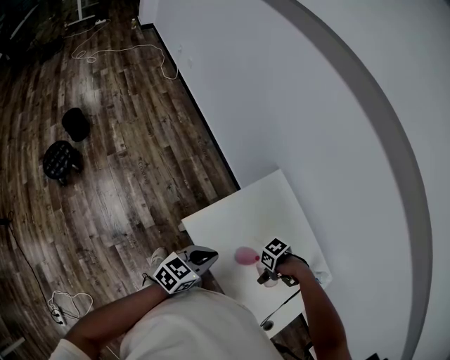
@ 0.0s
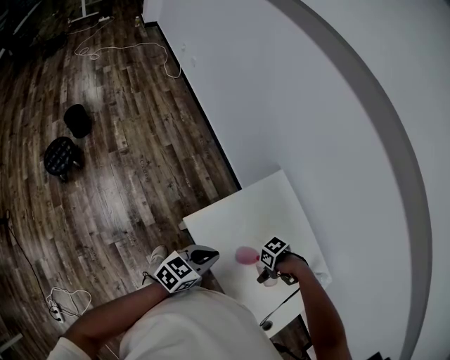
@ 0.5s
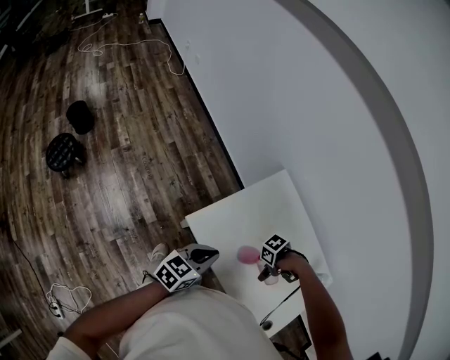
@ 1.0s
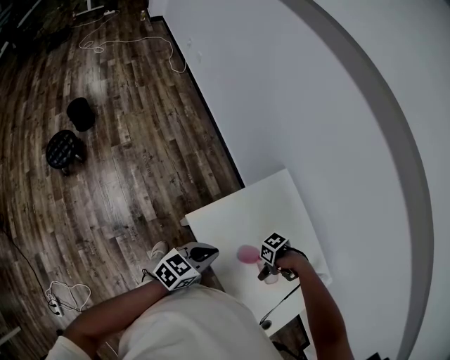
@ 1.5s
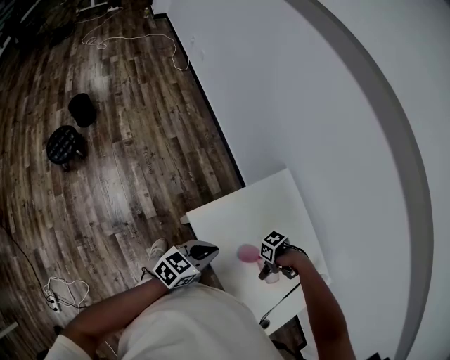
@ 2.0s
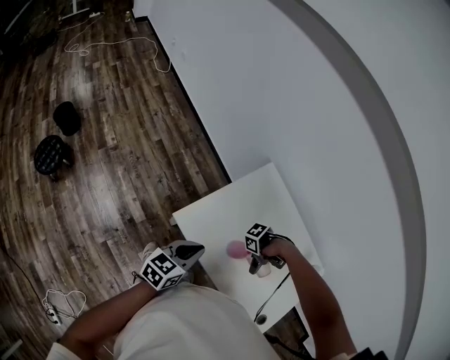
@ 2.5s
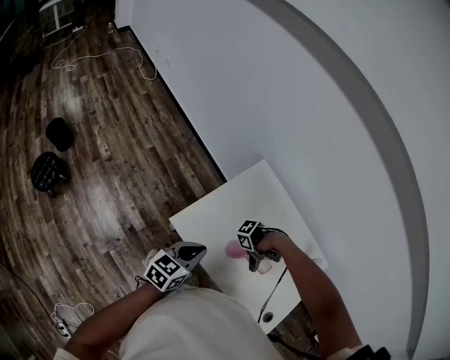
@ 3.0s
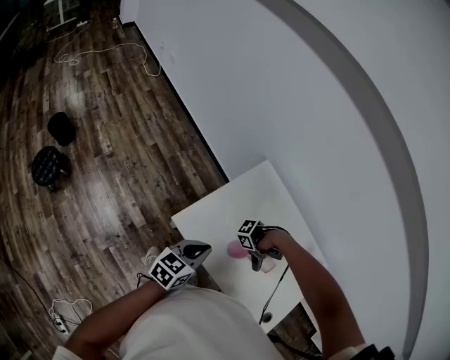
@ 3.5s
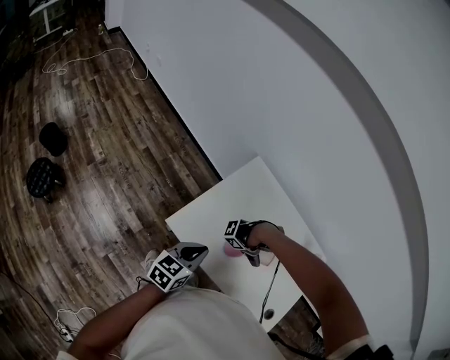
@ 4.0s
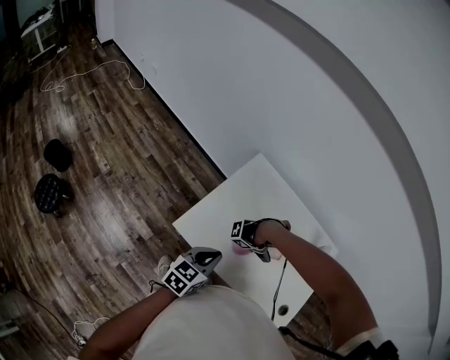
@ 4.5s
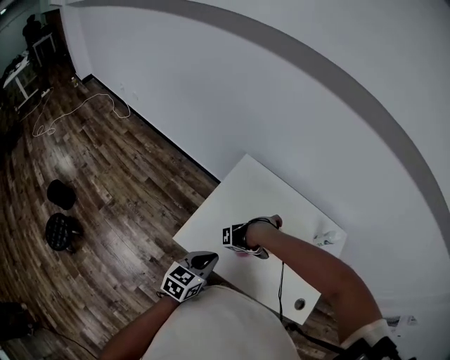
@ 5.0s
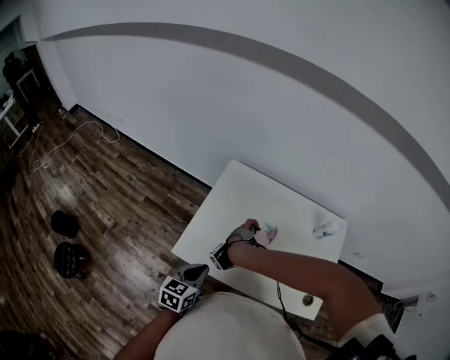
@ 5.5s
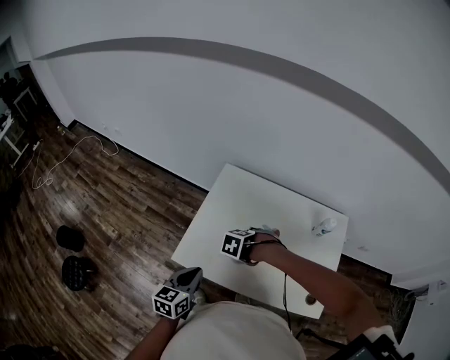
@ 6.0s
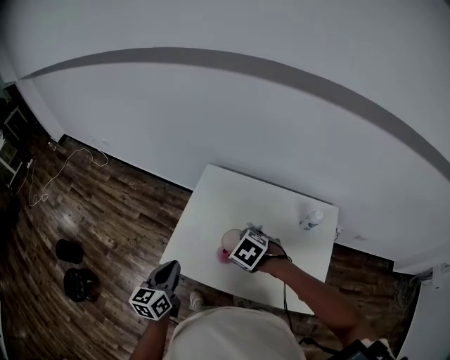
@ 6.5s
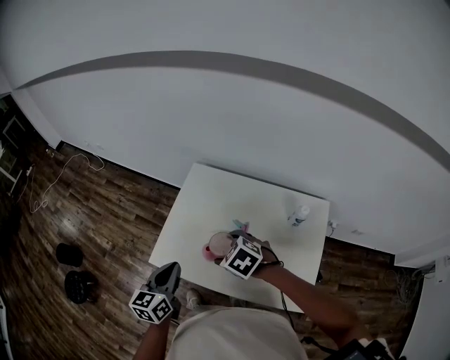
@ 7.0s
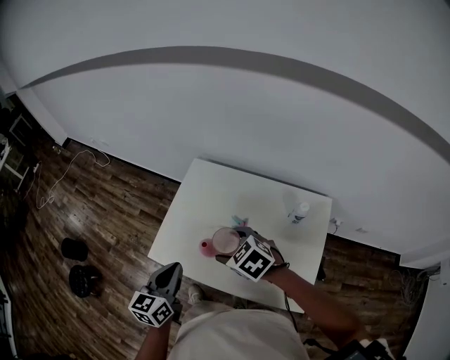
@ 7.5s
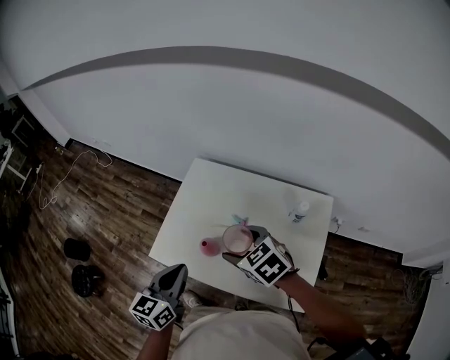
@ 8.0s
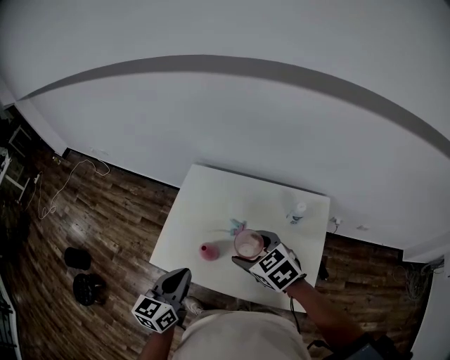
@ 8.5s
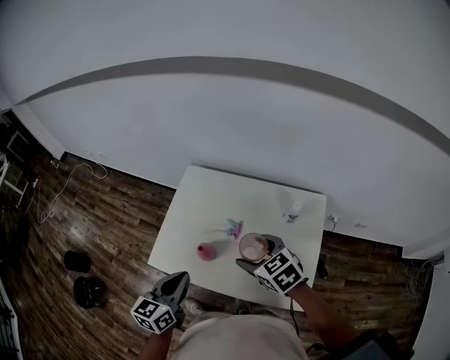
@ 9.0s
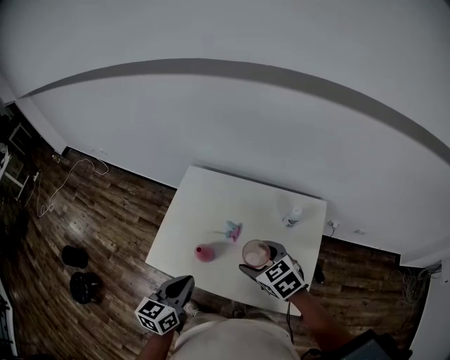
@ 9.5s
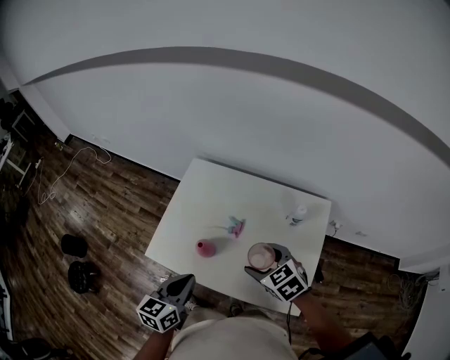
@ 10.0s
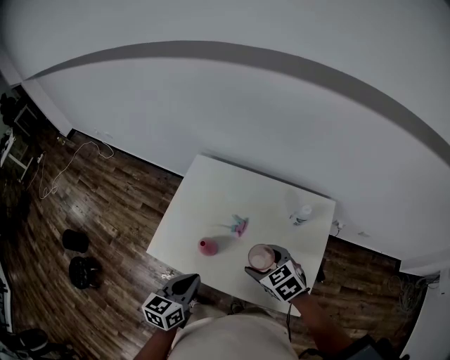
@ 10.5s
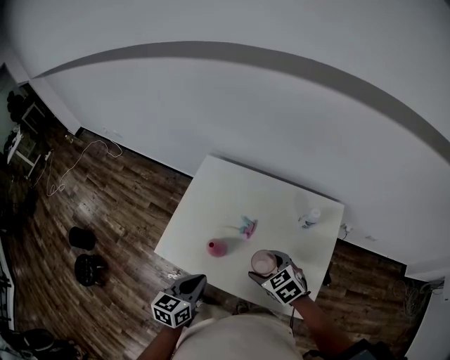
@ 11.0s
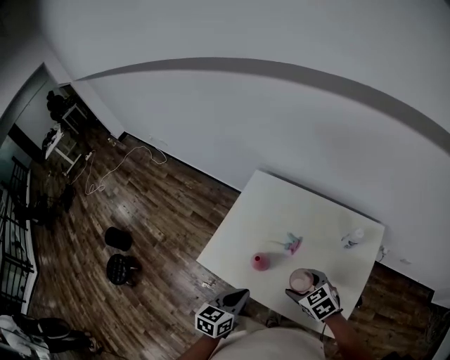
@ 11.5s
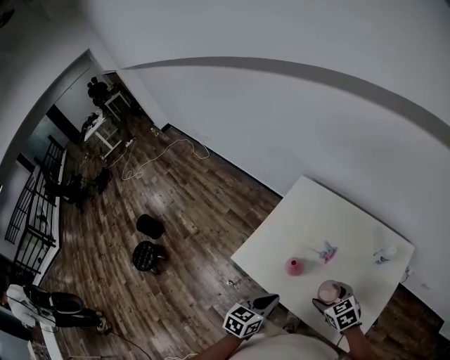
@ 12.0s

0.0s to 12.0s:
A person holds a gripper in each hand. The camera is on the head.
0.0s to 2.0s: There are only small adjustments of the grippers.
2.0s to 4.0s: The right gripper swivels approximately 30 degrees.
4.0s to 6.0s: The right gripper angles its fingers downward, by roughly 50 degrees.
6.0s to 8.0s: The left gripper ends up roughly 20 cm from where it was; the right gripper heads upward, covering some 15 cm, and angles its fingers upward, by approximately 40 degrees.
8.0s to 10.0s: The left gripper shifts by roughly 5 cm. The right gripper heads to the right and downward, covering approximately 10 cm.
10.0s to 12.0s: The right gripper shifts approximately 10 cm downward and to the left, while the left gripper travels downward by some 10 cm.

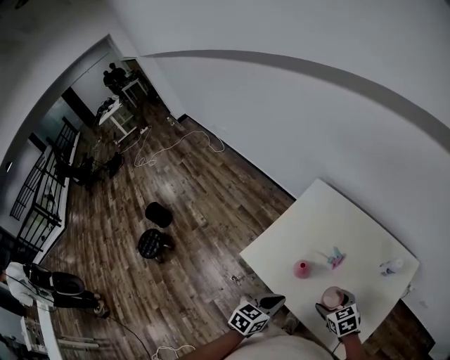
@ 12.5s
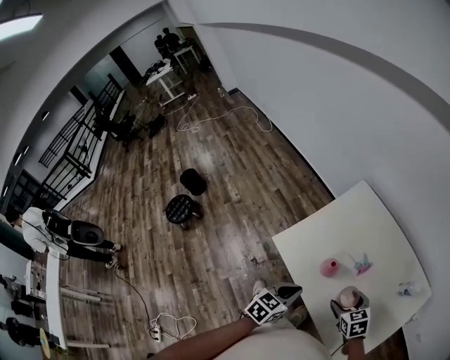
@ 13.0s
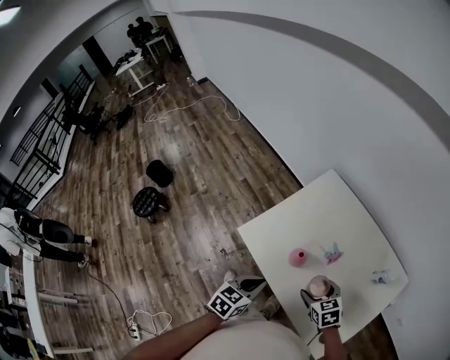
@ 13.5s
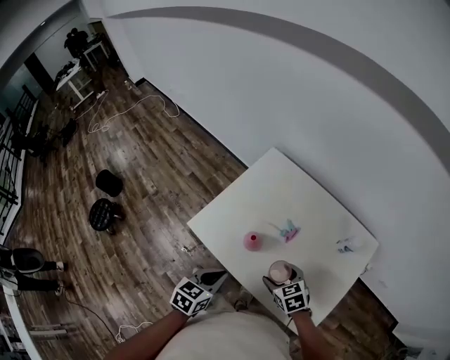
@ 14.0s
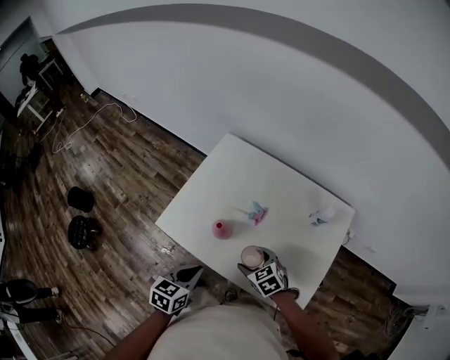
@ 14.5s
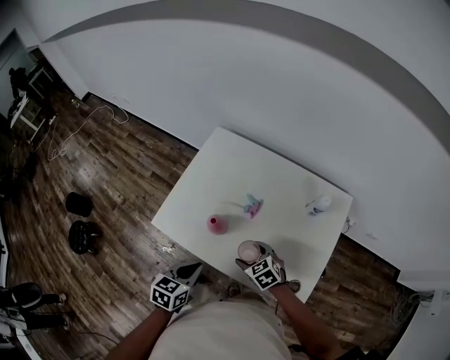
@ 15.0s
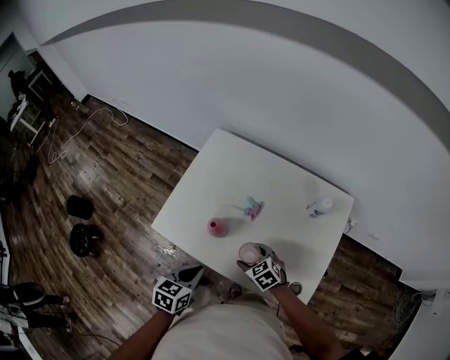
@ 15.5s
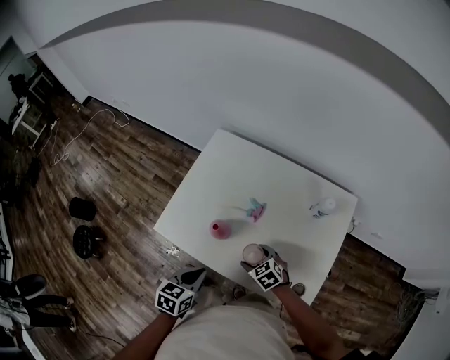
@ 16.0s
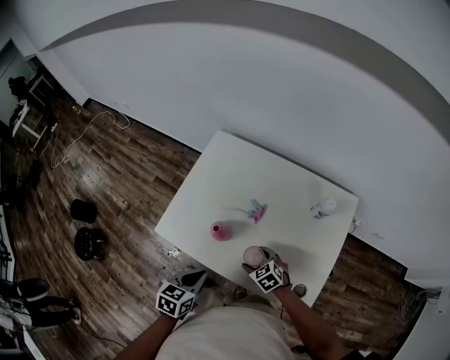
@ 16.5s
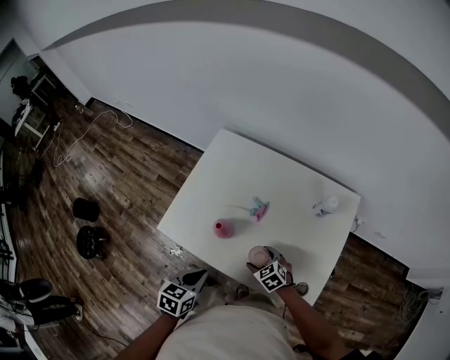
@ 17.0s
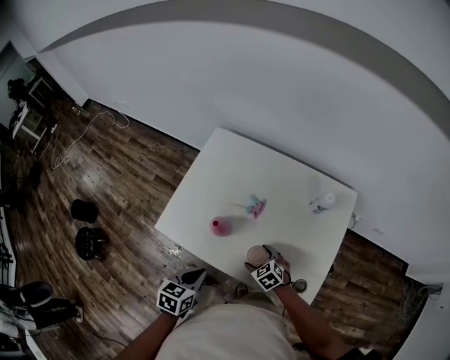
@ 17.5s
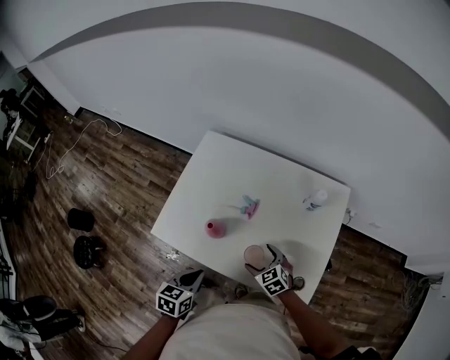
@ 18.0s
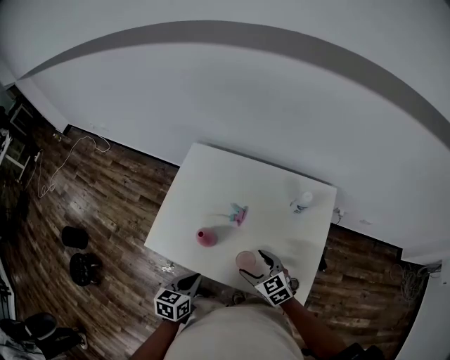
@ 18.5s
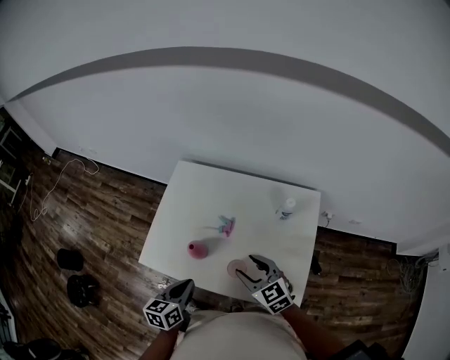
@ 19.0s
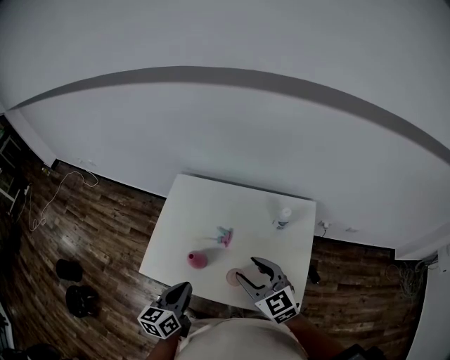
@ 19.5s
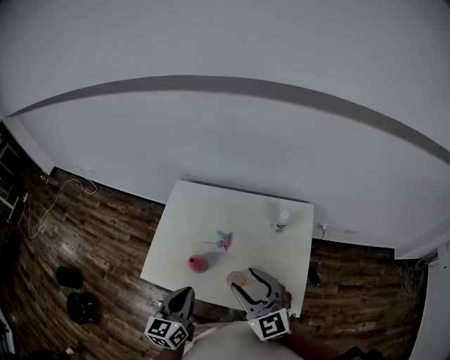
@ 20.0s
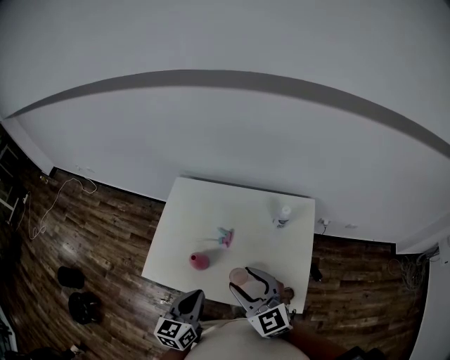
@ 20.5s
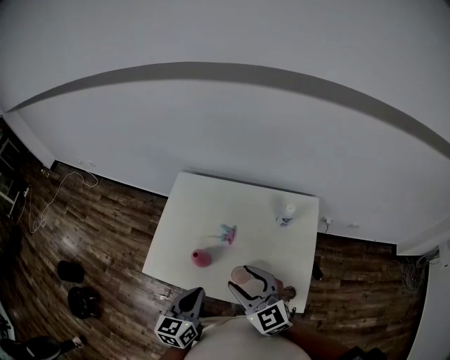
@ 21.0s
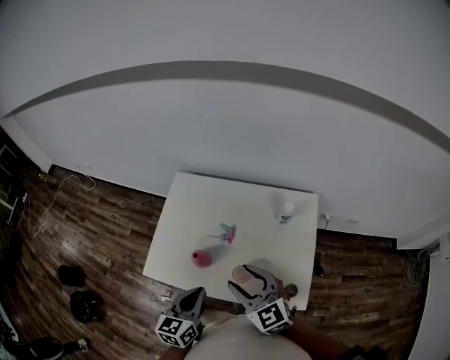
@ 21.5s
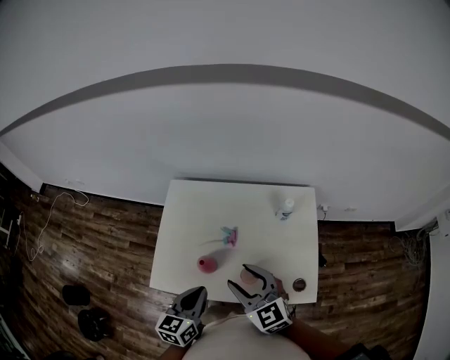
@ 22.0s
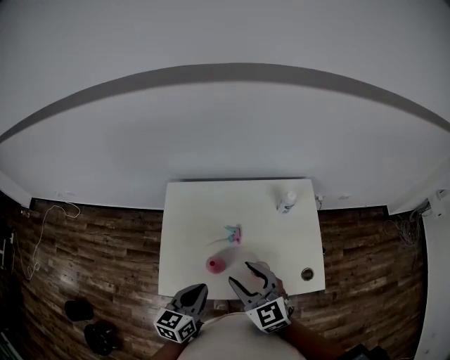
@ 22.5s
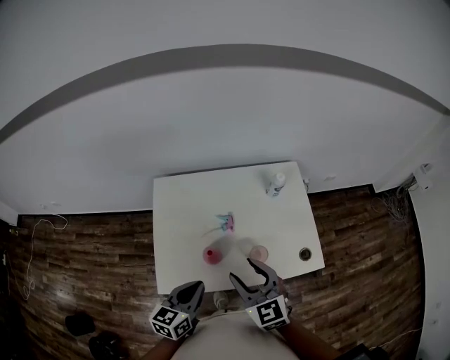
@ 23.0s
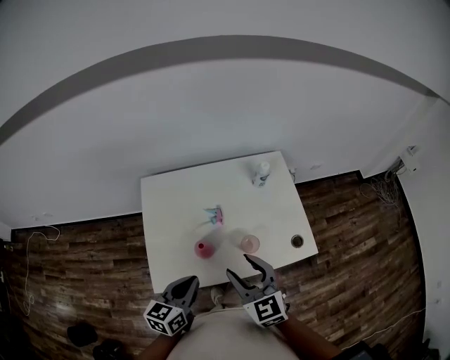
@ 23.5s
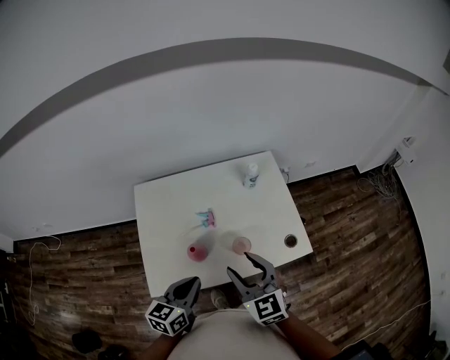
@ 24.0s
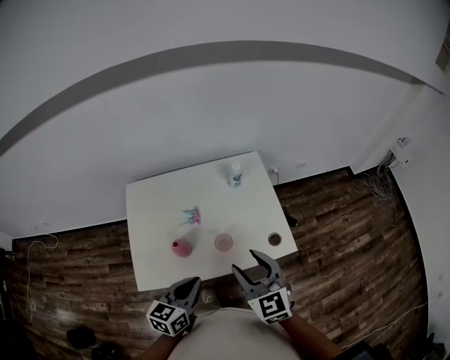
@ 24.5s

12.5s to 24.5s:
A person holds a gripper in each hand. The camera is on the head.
12.5s to 14.5s: The right gripper moves downward, approximately 5 cm.
14.5s to 16.5s: The right gripper is displaced downward by roughly 10 cm.
16.5s to 18.5s: The right gripper heads upward, covering roughly 10 cm.
18.5s to 20.5s: The right gripper travels upward by about 20 cm, changes its angle by about 30 degrees, and closes its fingers, while the left gripper shifts approximately 15 cm upward, and rotates some 20 degrees.
20.5s to 22.5s: The right gripper travels to the left by about 10 cm. Meanwhile the left gripper shifts approximately 10 cm to the left and forward.
22.5s to 24.5s: The grippers both shift to the right and backward by approximately 15 cm.

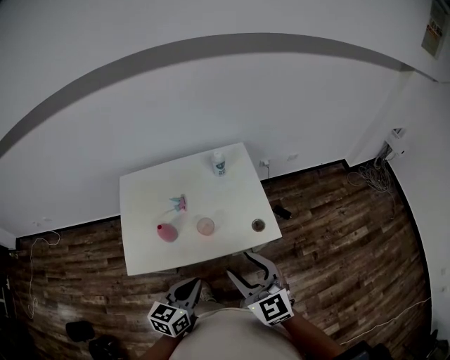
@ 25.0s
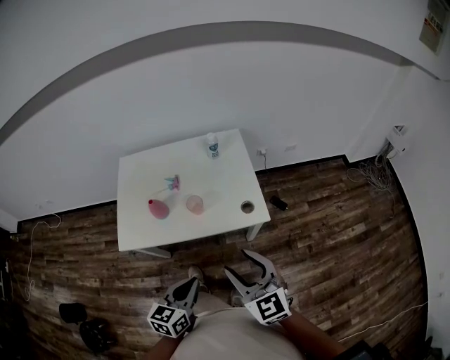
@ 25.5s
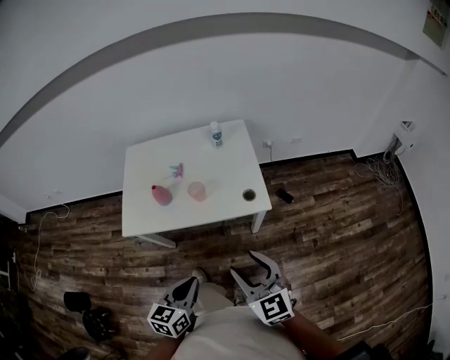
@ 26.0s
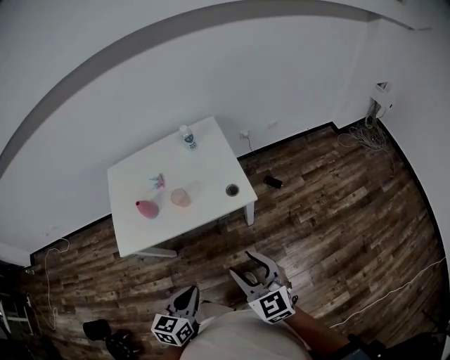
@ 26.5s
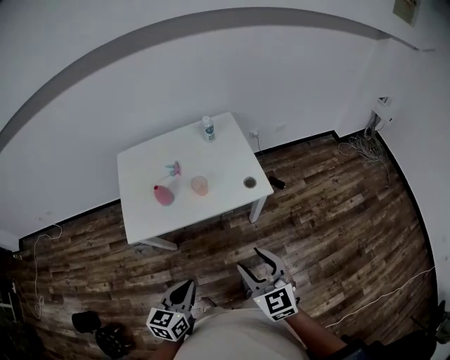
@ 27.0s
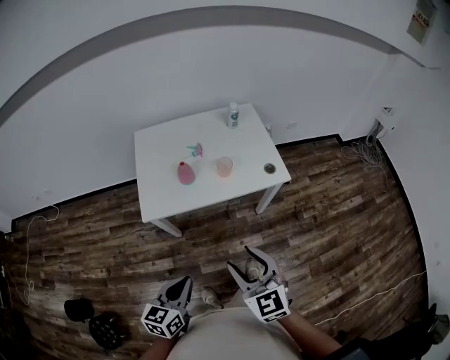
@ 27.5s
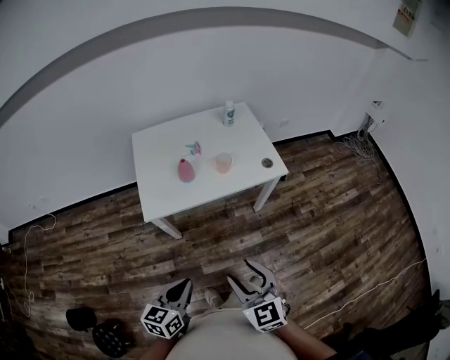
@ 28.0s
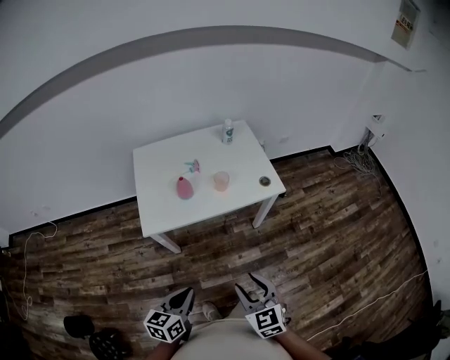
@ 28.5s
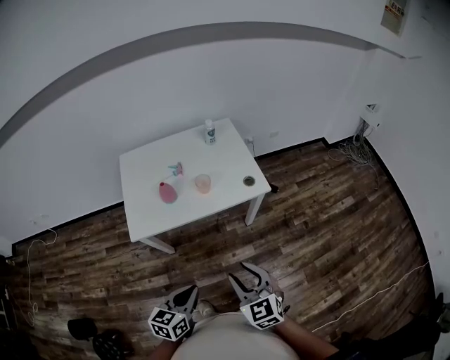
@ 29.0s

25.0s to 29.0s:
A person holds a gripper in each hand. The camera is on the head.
25.0s to 27.0s: The grippers both shift backward by some 20 cm.
27.0s to 29.0s: The left gripper heads backward, covering about 5 cm, and reaches approximately 15 cm to the left, then returns. The right gripper moves backward and to the left, roughly 10 cm.
